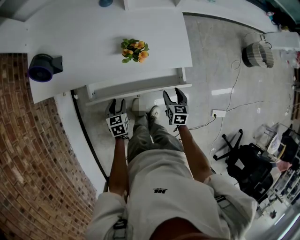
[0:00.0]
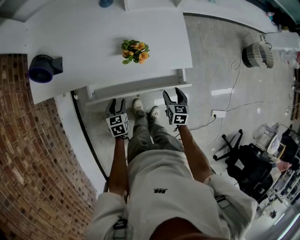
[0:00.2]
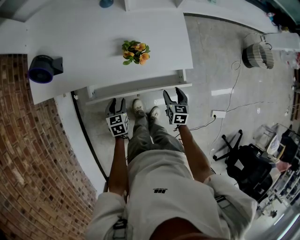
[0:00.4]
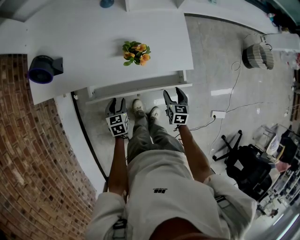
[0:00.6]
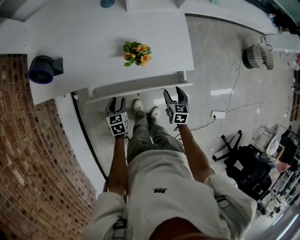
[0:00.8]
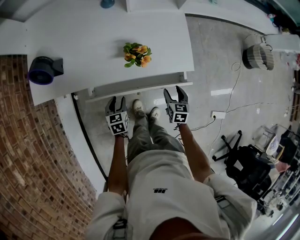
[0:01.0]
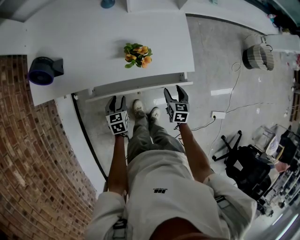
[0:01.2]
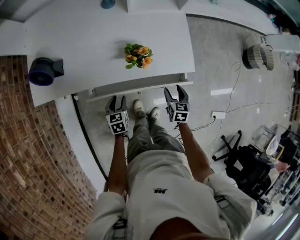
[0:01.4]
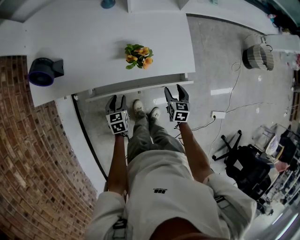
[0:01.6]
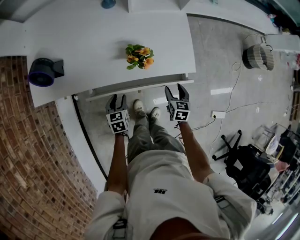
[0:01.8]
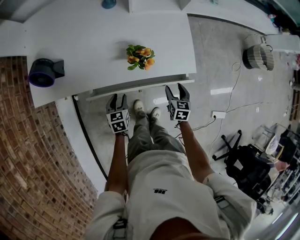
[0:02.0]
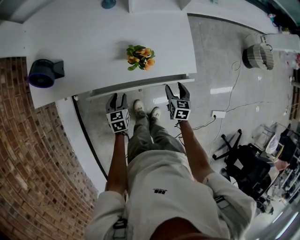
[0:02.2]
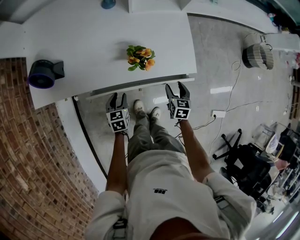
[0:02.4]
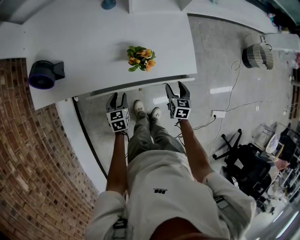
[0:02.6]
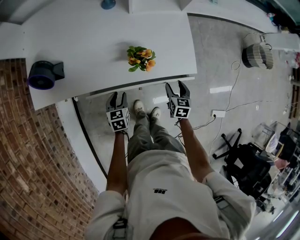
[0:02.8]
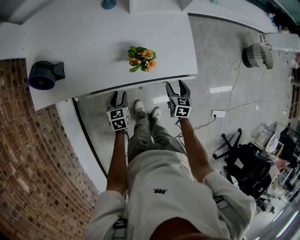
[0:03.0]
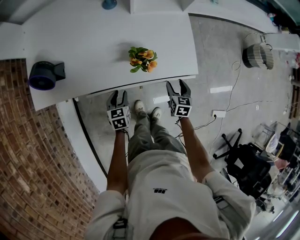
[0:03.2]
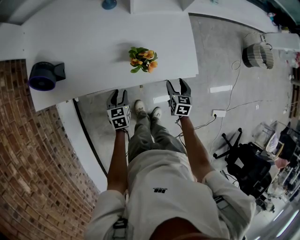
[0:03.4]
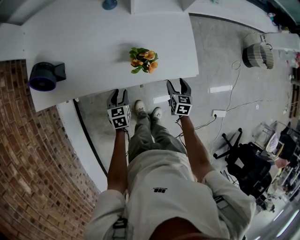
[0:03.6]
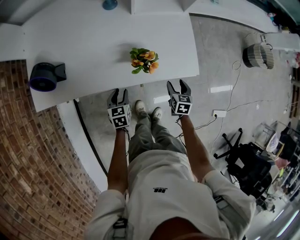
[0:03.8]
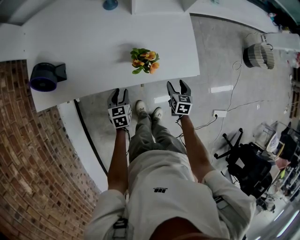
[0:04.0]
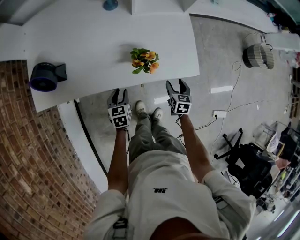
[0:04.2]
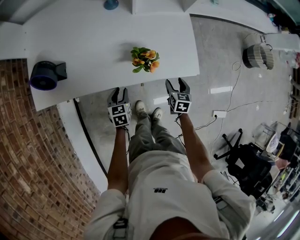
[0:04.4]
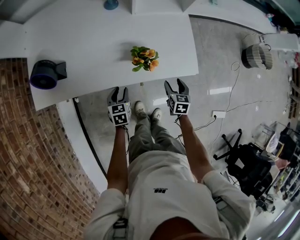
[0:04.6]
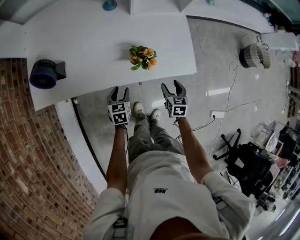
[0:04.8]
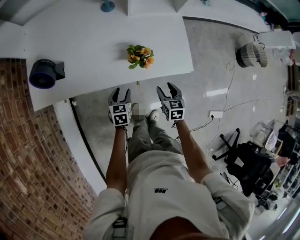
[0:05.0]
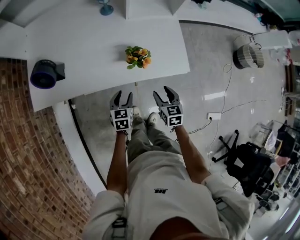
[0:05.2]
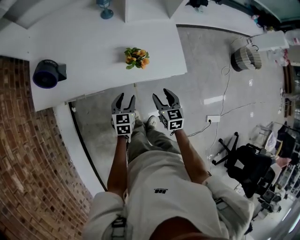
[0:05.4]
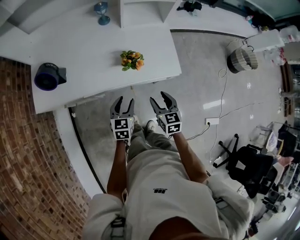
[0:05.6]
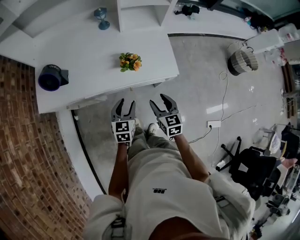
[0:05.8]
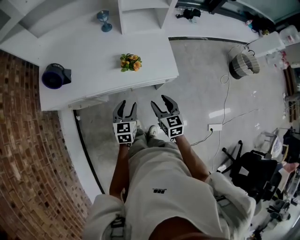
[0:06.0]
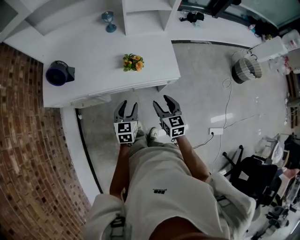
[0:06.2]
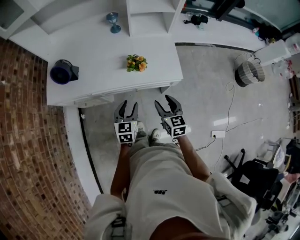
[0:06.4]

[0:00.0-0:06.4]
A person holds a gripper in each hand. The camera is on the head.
0.0 to 1.6 s: There are only small adjustments of the grippers.
1.6 to 4.8 s: There are only small adjustments of the grippers.
4.8 to 6.4 s: The right gripper travels upward and backward by approximately 20 cm, and turns by approximately 20 degrees. Meanwhile the left gripper moves upward, backward and to the right, some 25 cm.

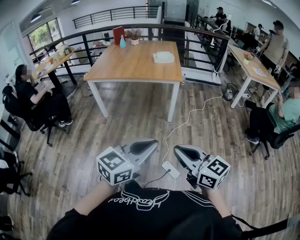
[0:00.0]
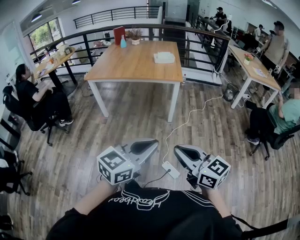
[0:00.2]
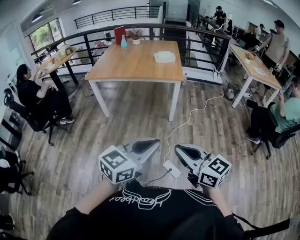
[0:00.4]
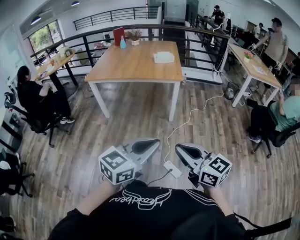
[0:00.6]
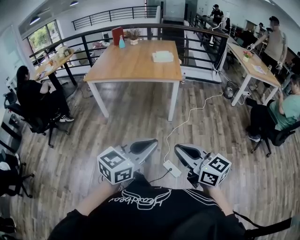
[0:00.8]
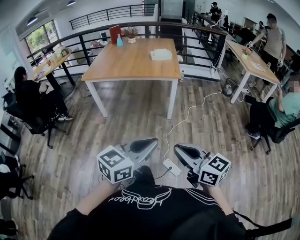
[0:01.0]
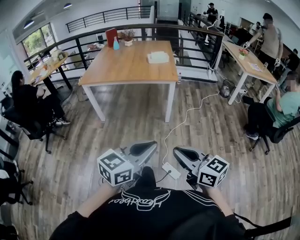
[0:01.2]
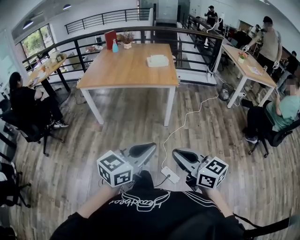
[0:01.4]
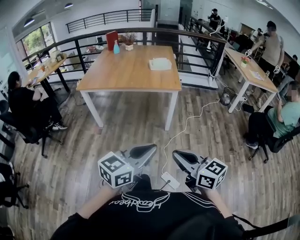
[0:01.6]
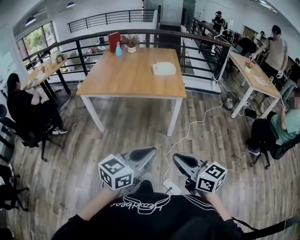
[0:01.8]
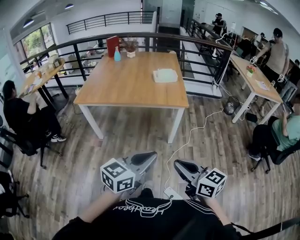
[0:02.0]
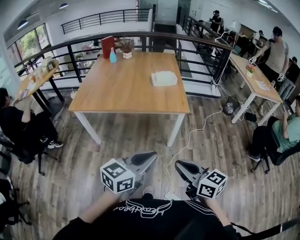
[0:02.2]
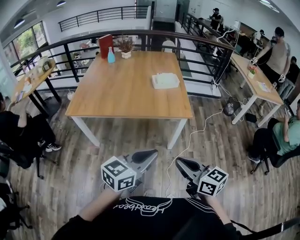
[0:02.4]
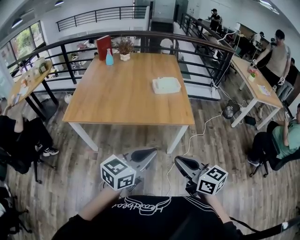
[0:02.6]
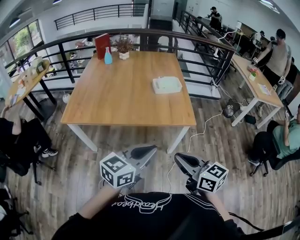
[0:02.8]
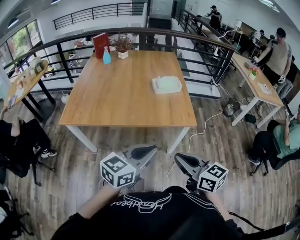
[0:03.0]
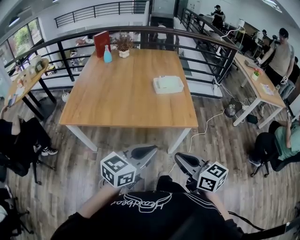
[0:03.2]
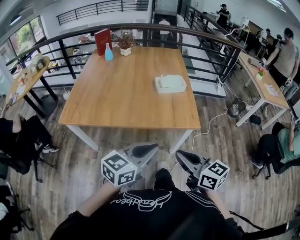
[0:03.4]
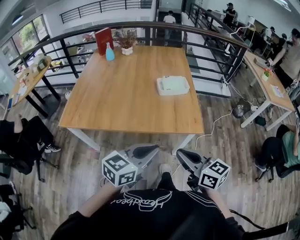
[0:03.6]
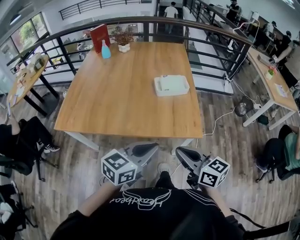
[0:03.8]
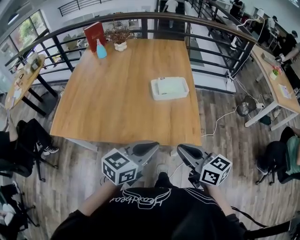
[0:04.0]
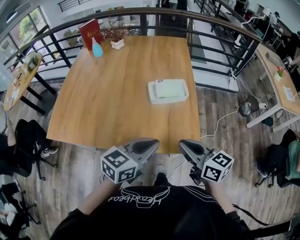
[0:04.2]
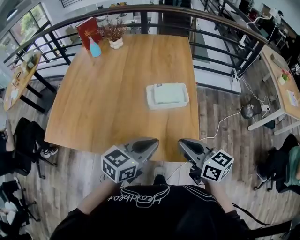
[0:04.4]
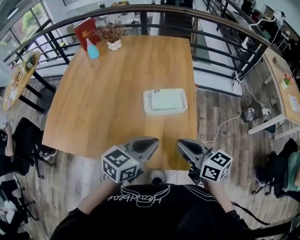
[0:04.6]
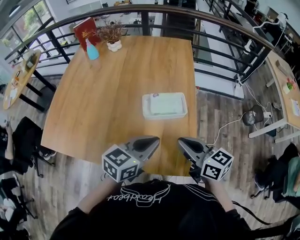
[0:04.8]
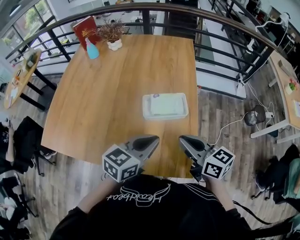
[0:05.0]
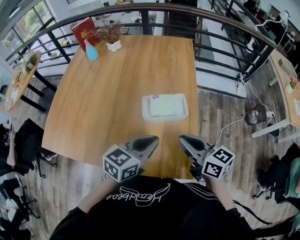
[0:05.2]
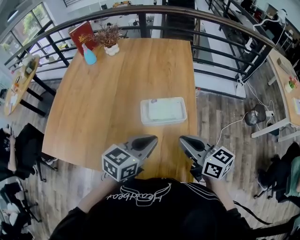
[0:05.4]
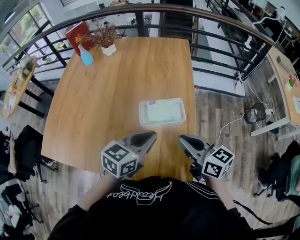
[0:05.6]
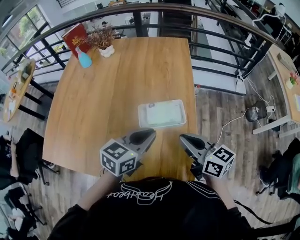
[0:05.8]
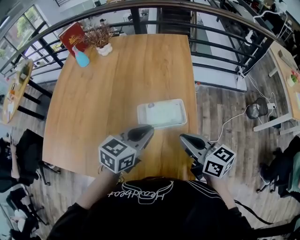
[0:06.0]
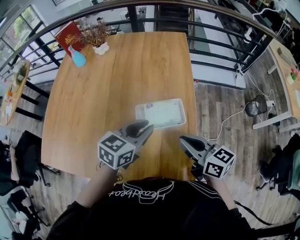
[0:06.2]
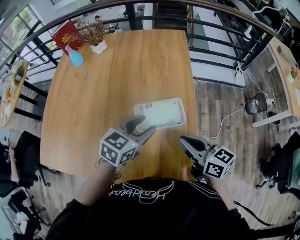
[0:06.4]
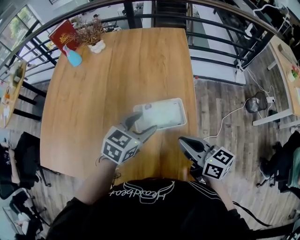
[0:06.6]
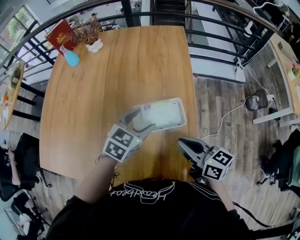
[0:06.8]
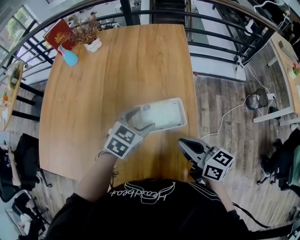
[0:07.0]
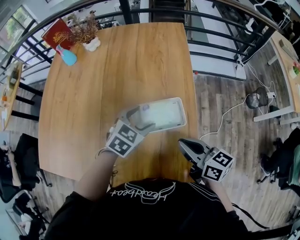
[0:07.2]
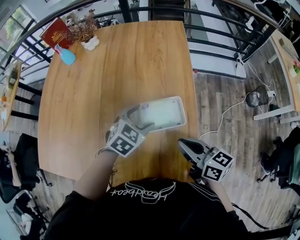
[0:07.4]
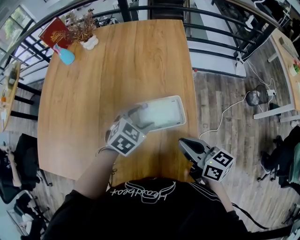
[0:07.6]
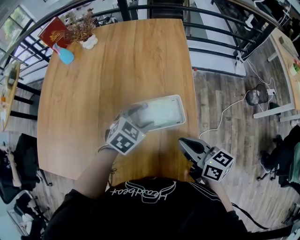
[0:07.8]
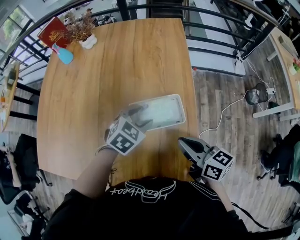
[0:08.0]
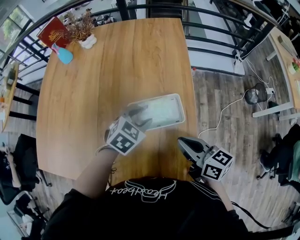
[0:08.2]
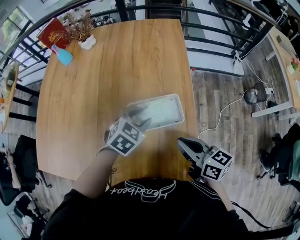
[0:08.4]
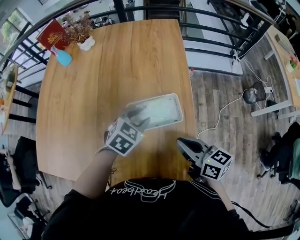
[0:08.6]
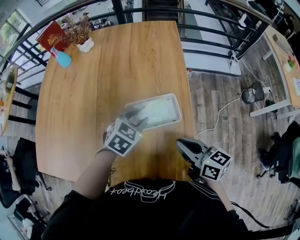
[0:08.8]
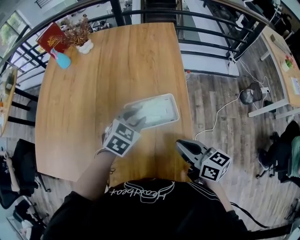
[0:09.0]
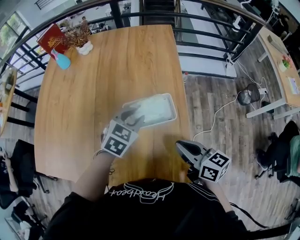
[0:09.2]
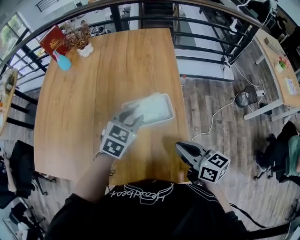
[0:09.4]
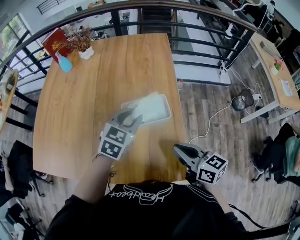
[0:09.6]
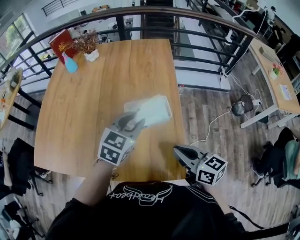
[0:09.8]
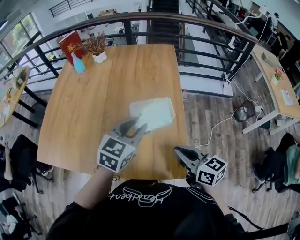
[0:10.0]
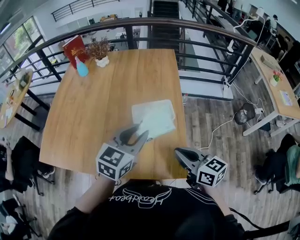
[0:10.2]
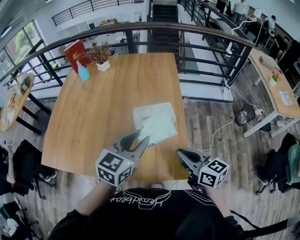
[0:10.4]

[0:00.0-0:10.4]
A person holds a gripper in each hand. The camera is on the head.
0.0 to 1.4 s: The two grippers go about 5 cm forward.
1.4 to 3.0 s: The two grippers travel together, forward, some 50 cm.
3.0 to 4.4 s: The grippers both shift forward by roughly 40 cm.
4.4 to 6.0 s: The two grippers go roughly 20 cm forward.
6.0 to 7.4 s: The left gripper moves downward and forward, some 15 cm, turns by about 30 degrees, and opens its fingers, while the right gripper moves downward, about 5 cm.
7.4 to 9.0 s: The left gripper closes.
9.0 to 10.4 s: The right gripper heads backward and upward, covering approximately 15 cm. Meanwhile the left gripper shifts about 25 cm backward and upward, and swivels about 30 degrees.

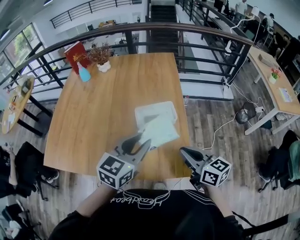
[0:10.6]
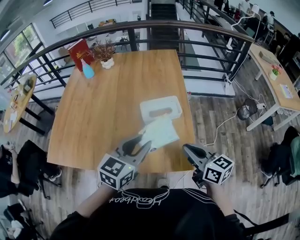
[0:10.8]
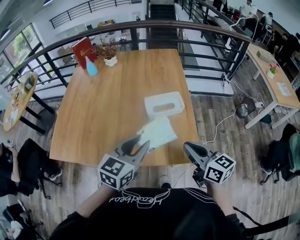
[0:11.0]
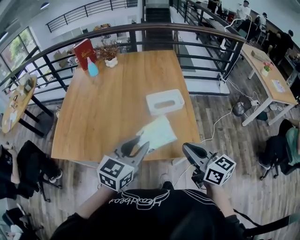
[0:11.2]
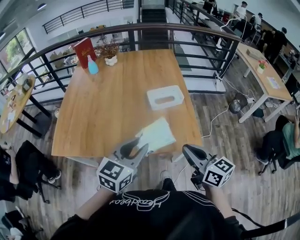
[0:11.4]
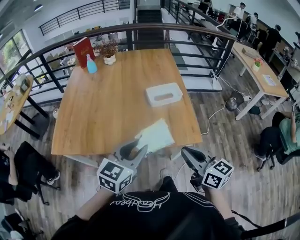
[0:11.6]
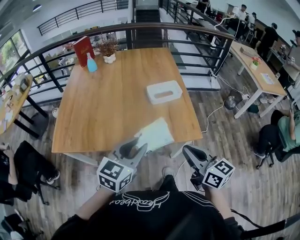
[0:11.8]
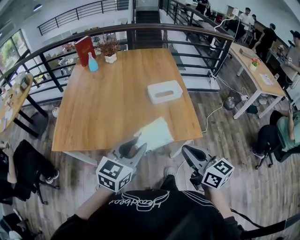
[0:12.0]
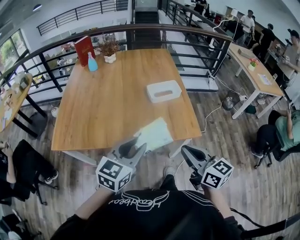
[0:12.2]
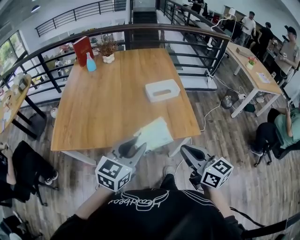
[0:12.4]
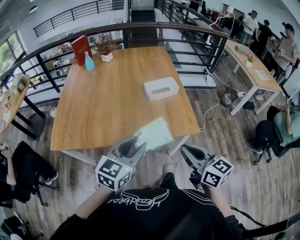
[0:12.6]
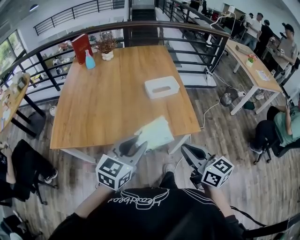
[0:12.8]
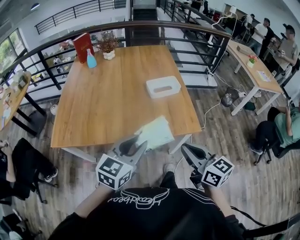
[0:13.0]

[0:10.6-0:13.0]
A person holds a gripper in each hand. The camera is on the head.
10.6 to 11.8 s: The two grippers go about 30 cm backward and to the left.
11.8 to 13.0 s: The grippers stay close to where they were, moving slightly.

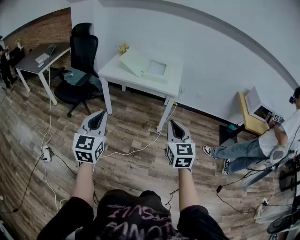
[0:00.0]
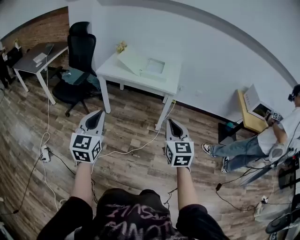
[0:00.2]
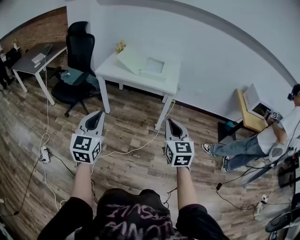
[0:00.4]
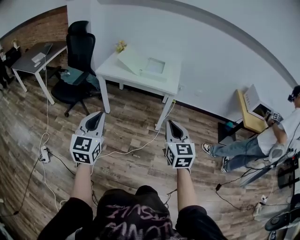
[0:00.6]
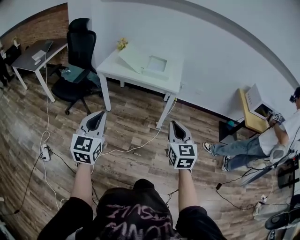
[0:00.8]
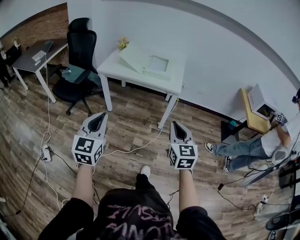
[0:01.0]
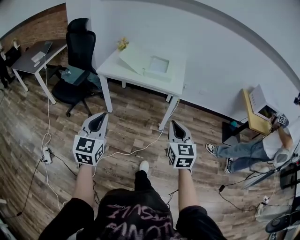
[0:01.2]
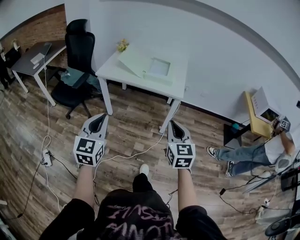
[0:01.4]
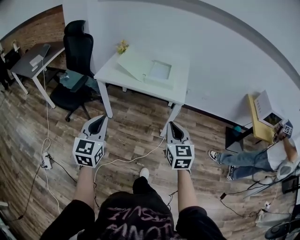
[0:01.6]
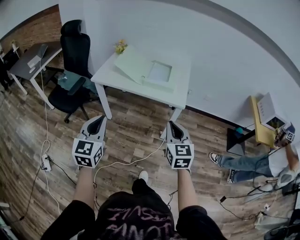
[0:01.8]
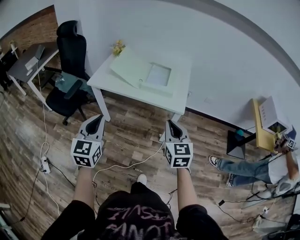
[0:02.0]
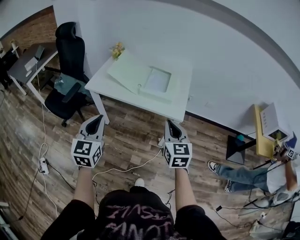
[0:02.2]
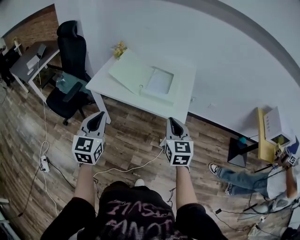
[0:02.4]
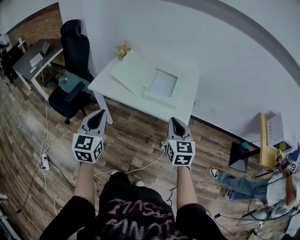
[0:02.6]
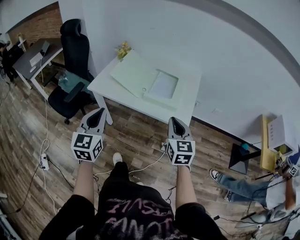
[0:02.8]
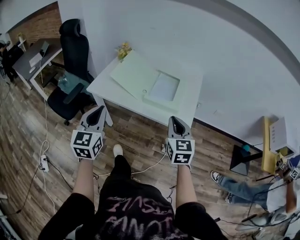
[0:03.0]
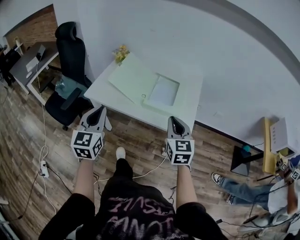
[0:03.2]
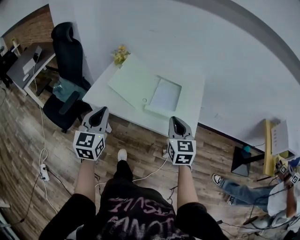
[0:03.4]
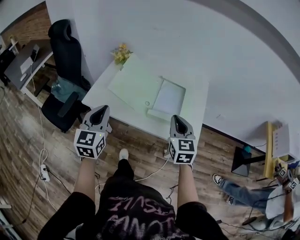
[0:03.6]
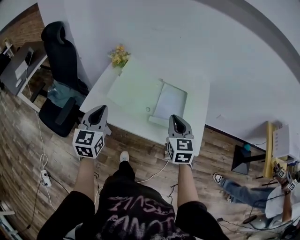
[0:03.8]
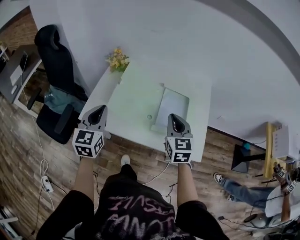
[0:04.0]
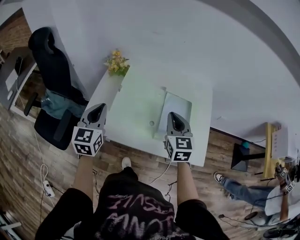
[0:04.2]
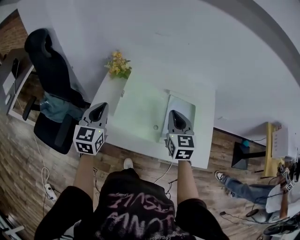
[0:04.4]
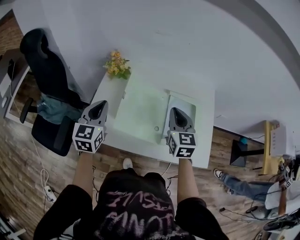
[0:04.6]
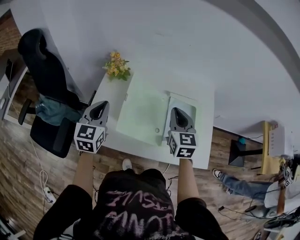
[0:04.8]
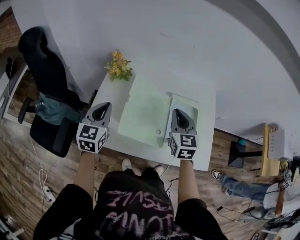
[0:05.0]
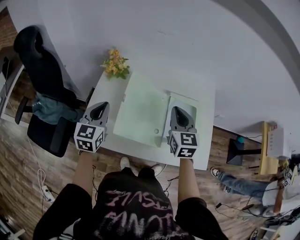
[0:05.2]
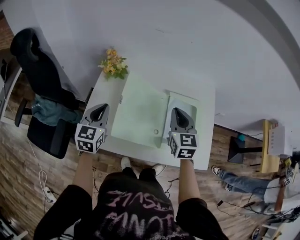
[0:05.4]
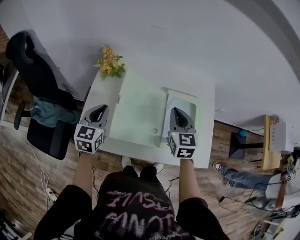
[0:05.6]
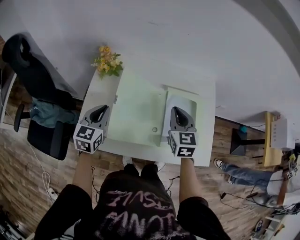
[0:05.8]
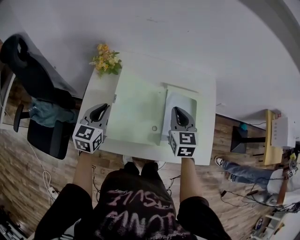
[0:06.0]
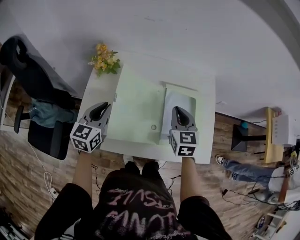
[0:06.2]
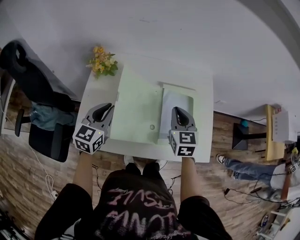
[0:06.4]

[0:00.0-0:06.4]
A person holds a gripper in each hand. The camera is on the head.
0.0 to 1.6 s: Both grippers travel together forward, about 15 cm.
1.6 to 3.2 s: Both grippers travel together forward, approximately 35 cm.
3.2 to 4.8 s: The right gripper is displaced forward and to the left by roughly 35 cm. Meanwhile the left gripper moves forward, about 35 cm.
4.8 to 6.4 s: The right gripper is displaced downward and to the right by approximately 10 cm; the left gripper heads to the right and downward, covering about 10 cm.
